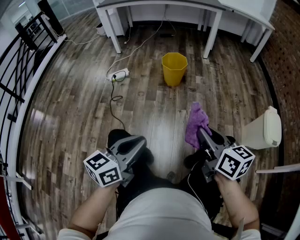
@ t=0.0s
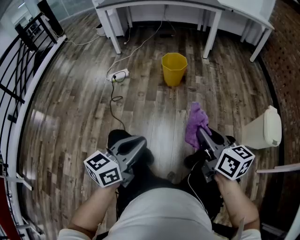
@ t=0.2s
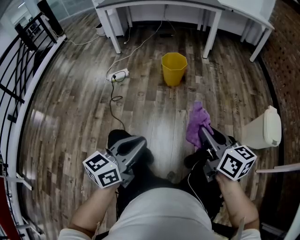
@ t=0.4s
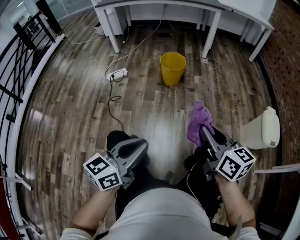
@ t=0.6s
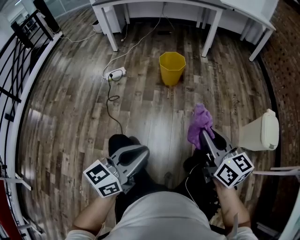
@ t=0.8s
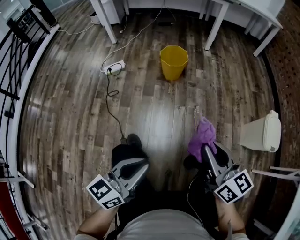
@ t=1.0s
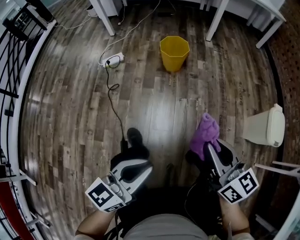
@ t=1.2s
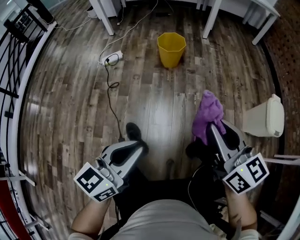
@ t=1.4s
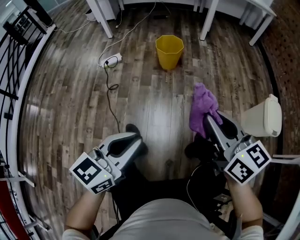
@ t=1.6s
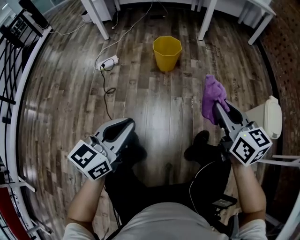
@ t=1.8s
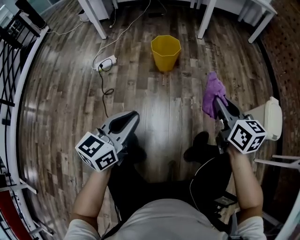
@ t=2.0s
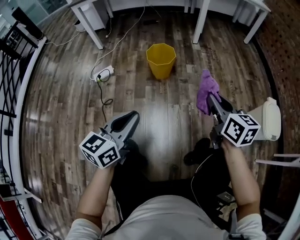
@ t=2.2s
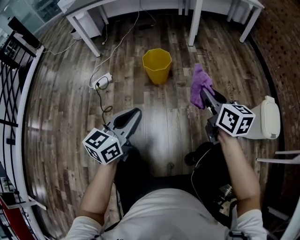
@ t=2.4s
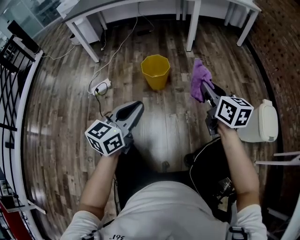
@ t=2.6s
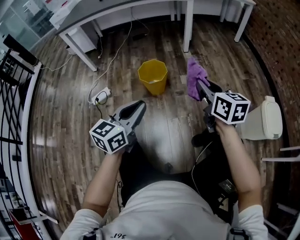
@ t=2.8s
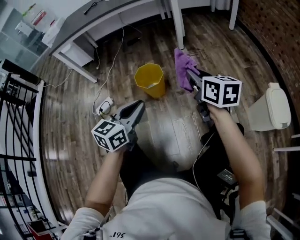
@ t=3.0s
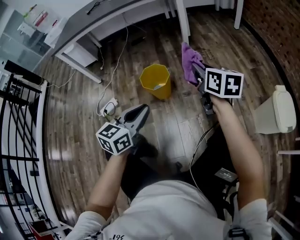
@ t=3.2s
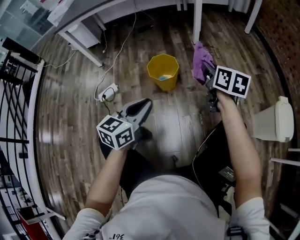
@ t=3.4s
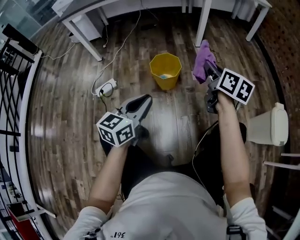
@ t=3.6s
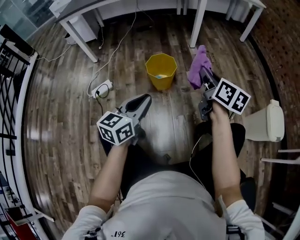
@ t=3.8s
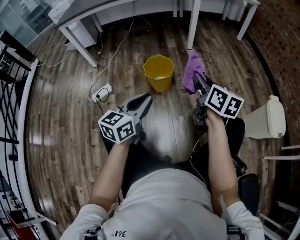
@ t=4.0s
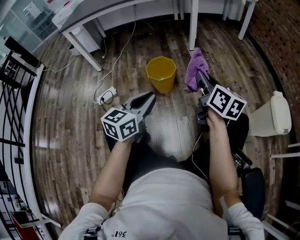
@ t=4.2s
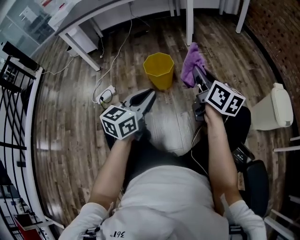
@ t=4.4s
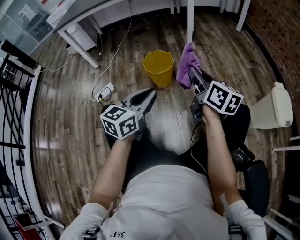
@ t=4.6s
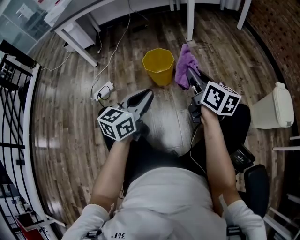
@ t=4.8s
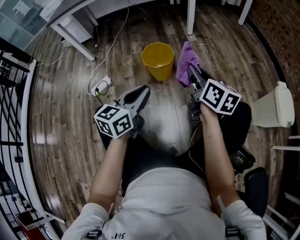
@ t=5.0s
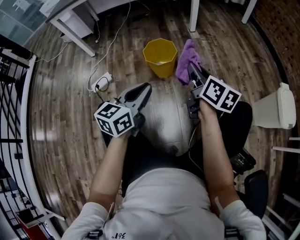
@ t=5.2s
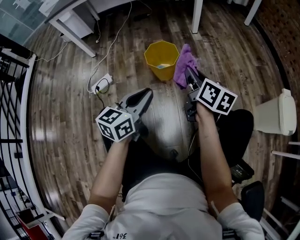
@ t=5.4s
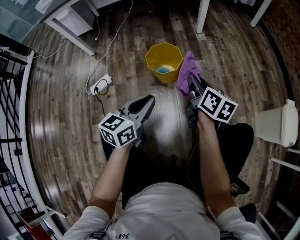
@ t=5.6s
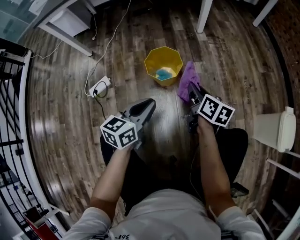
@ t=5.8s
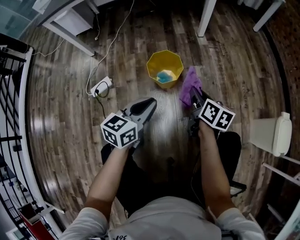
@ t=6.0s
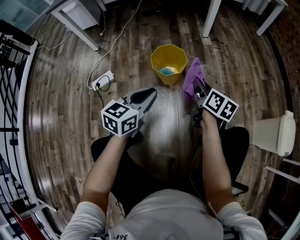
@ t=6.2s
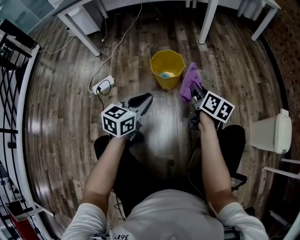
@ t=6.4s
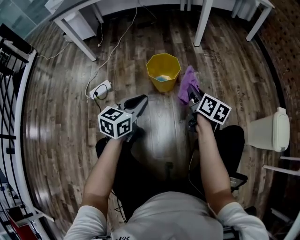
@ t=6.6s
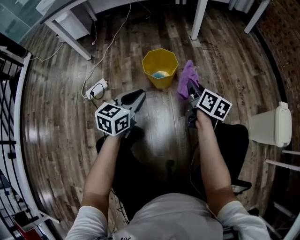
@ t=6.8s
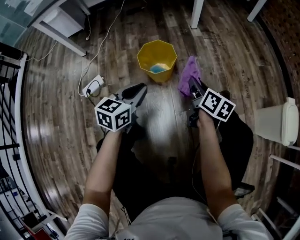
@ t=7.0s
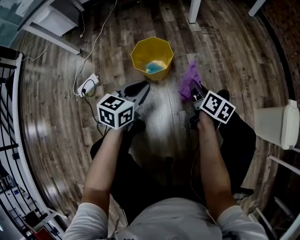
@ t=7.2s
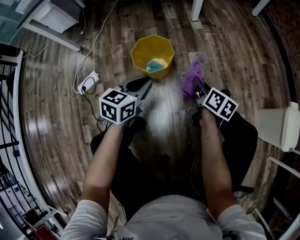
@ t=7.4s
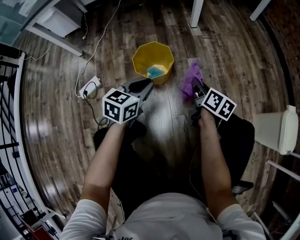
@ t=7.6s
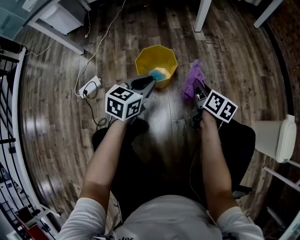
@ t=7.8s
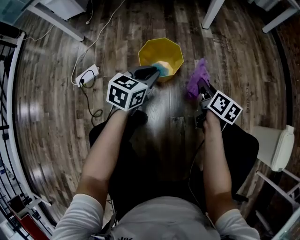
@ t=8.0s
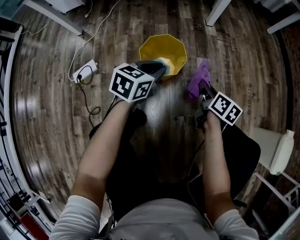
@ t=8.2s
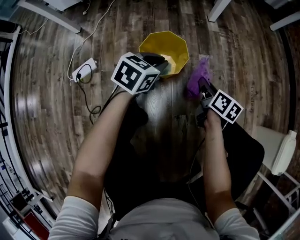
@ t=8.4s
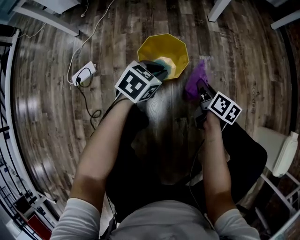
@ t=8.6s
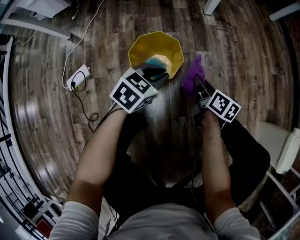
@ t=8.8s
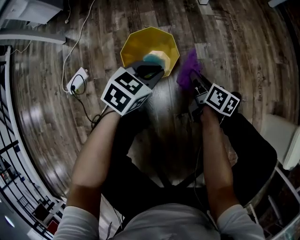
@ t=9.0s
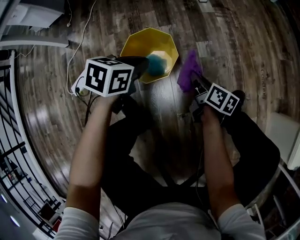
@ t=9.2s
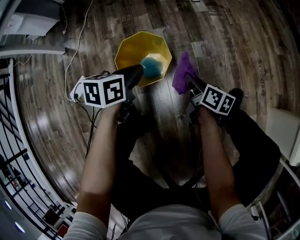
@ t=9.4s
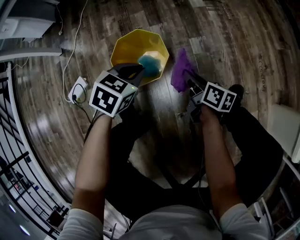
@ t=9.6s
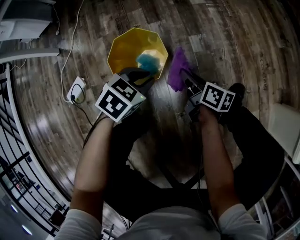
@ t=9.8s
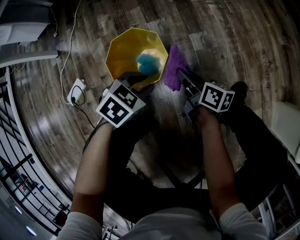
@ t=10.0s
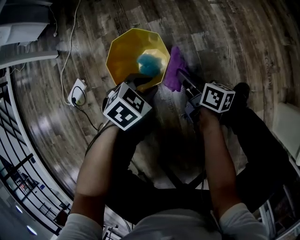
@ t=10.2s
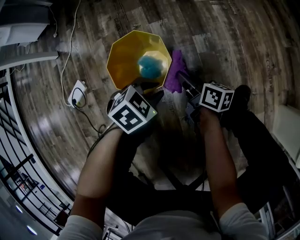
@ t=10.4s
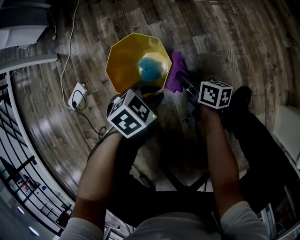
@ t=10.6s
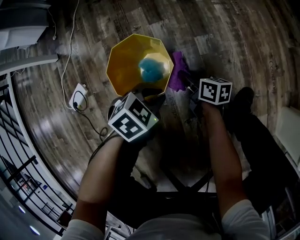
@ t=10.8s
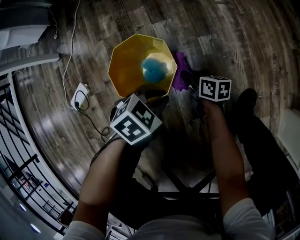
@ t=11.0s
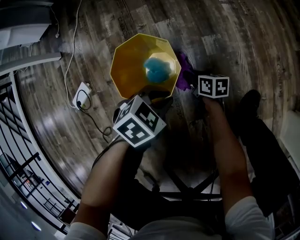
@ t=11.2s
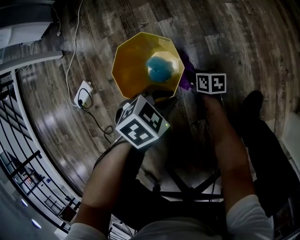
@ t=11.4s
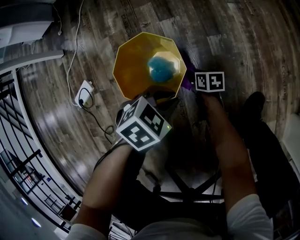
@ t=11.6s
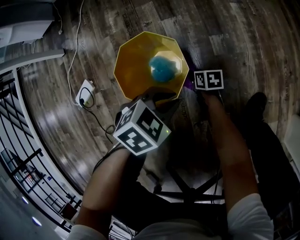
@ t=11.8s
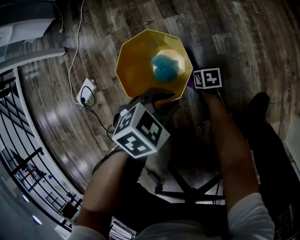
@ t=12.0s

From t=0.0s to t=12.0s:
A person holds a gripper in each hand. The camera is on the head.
From t=0.0s to t=1.6s: The right gripper shifts approximately 5 cm upward.
From t=1.6s to t=3.0s: Both grippers move forward, some 35 cm. The right gripper changes its angle by approximately 20 degrees.
From t=3.0s to t=4.4s: The right gripper is displaced backward and to the left by some 10 cm.
From t=4.4s to t=6.0s: The right gripper shifts some 20 cm downward, forward and to the left, and turns by approximately 30 degrees. The left gripper travels forward, to the left and downward by some 15 cm.
From t=6.0s to t=7.6s: The right gripper travels downward and to the right by about 10 cm. Meanwhile the left gripper moves downward and forward, roughly 15 cm.
From t=7.6s to t=9.0s: The right gripper goes some 15 cm downward and forward; the left gripper goes roughly 15 cm forward and downward, and rotates about 20 degrees.
From t=9.0s to t=10.4s: The right gripper moves some 5 cm; the left gripper travels downward by approximately 10 cm, and rotates approximately 20 degrees.
From t=10.4s to t=12.0s: The right gripper is displaced downward by approximately 20 cm, and tilts its fingers some 40 degrees downward.

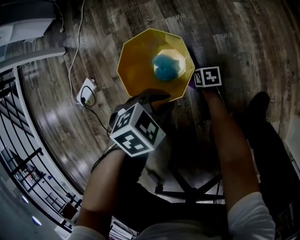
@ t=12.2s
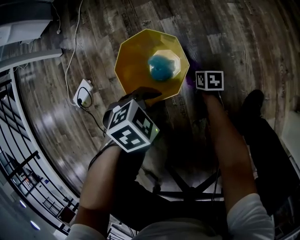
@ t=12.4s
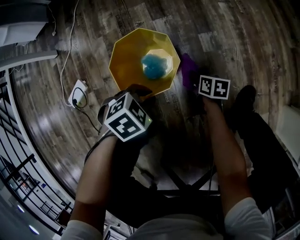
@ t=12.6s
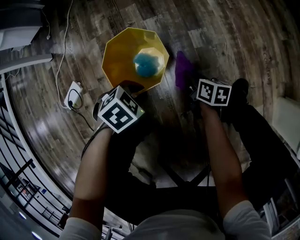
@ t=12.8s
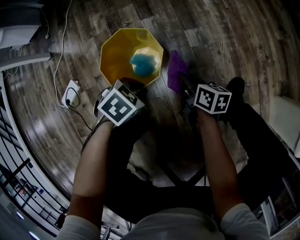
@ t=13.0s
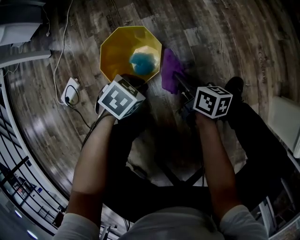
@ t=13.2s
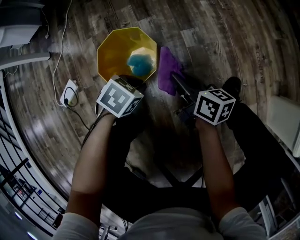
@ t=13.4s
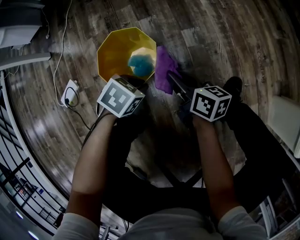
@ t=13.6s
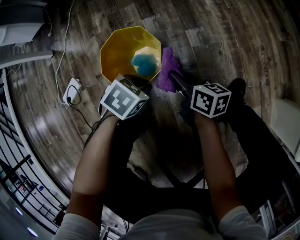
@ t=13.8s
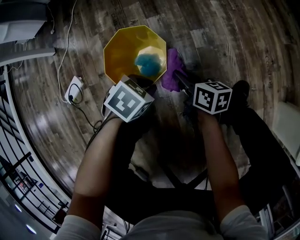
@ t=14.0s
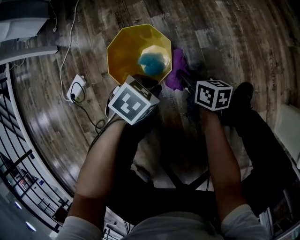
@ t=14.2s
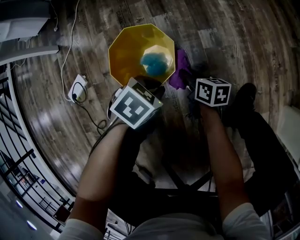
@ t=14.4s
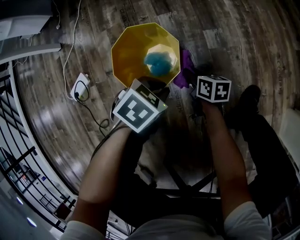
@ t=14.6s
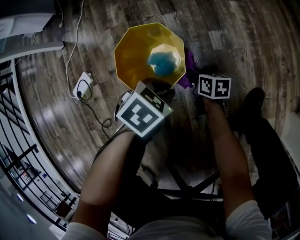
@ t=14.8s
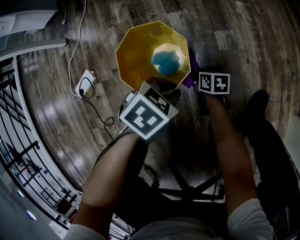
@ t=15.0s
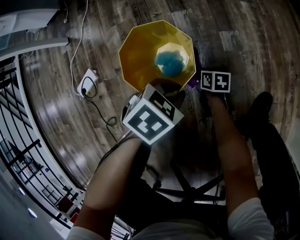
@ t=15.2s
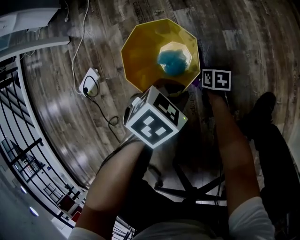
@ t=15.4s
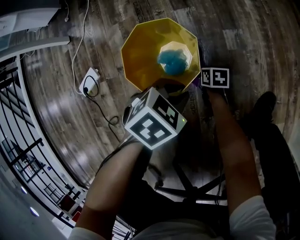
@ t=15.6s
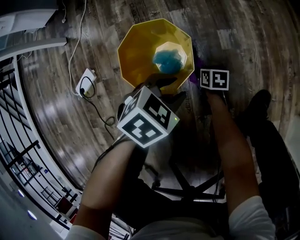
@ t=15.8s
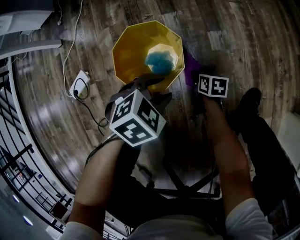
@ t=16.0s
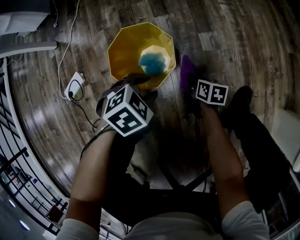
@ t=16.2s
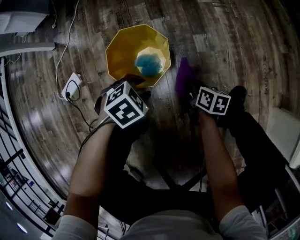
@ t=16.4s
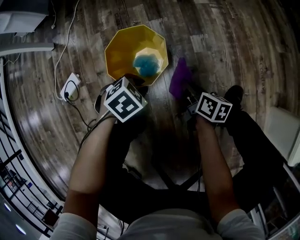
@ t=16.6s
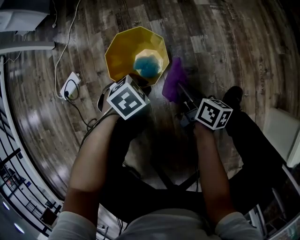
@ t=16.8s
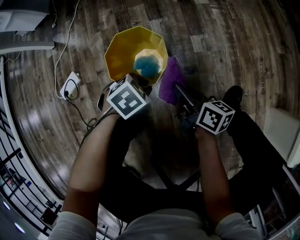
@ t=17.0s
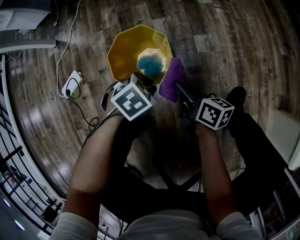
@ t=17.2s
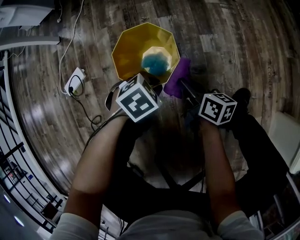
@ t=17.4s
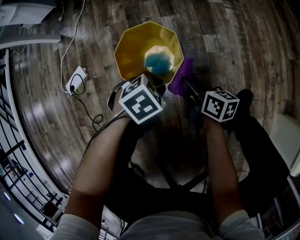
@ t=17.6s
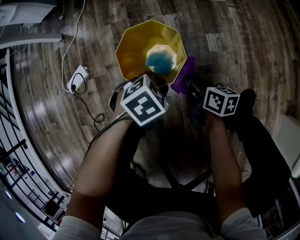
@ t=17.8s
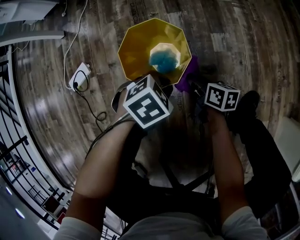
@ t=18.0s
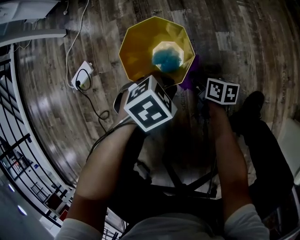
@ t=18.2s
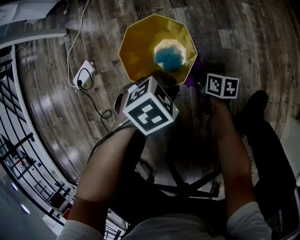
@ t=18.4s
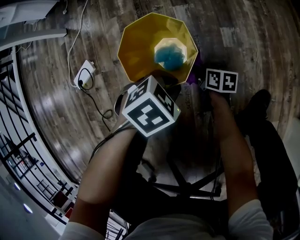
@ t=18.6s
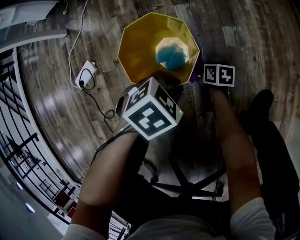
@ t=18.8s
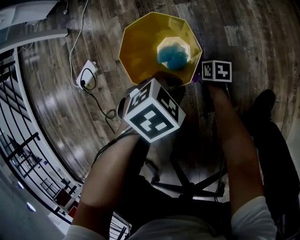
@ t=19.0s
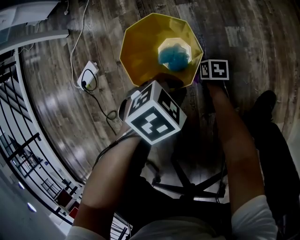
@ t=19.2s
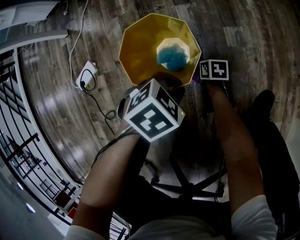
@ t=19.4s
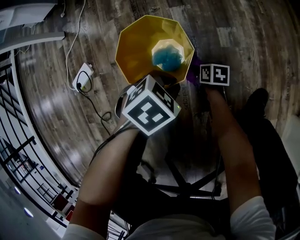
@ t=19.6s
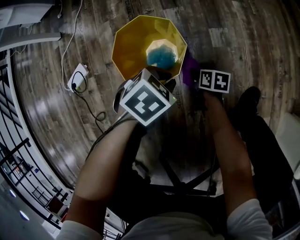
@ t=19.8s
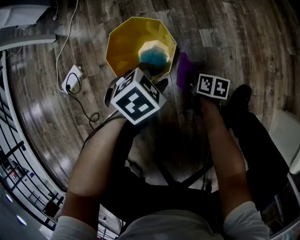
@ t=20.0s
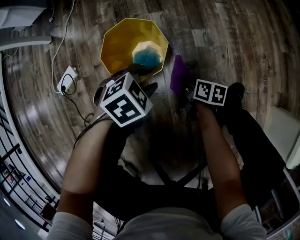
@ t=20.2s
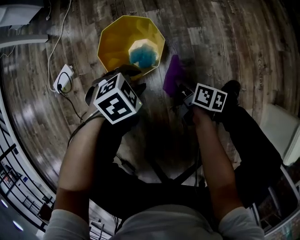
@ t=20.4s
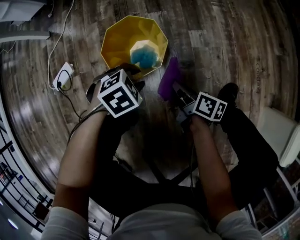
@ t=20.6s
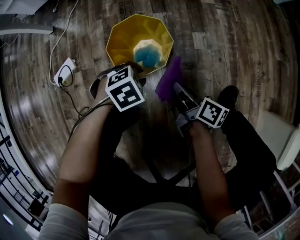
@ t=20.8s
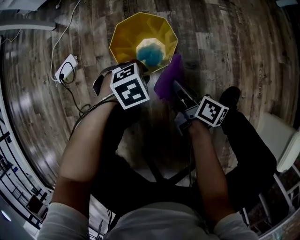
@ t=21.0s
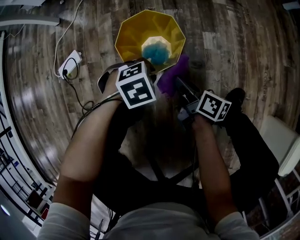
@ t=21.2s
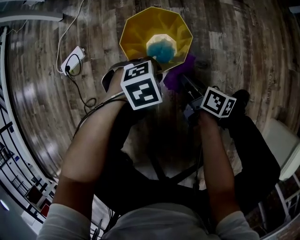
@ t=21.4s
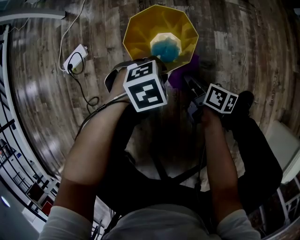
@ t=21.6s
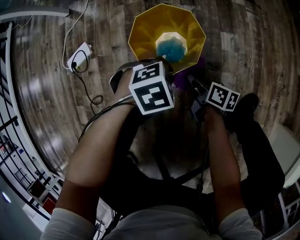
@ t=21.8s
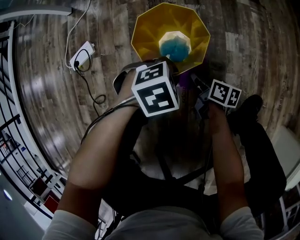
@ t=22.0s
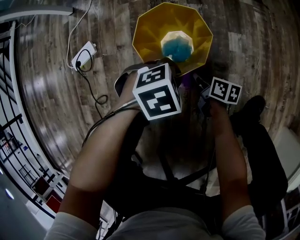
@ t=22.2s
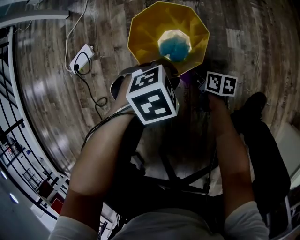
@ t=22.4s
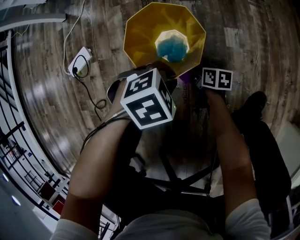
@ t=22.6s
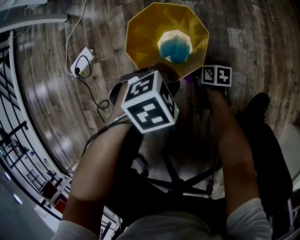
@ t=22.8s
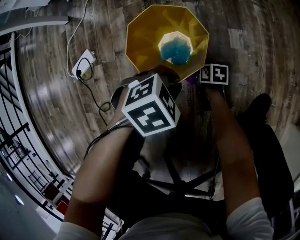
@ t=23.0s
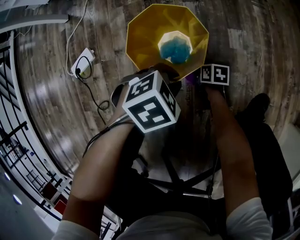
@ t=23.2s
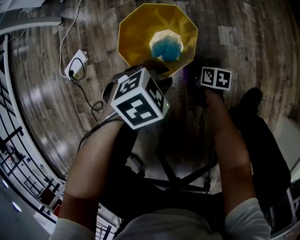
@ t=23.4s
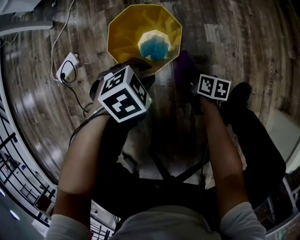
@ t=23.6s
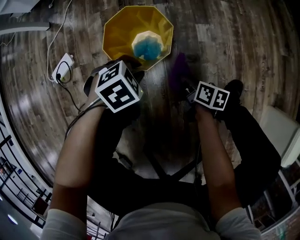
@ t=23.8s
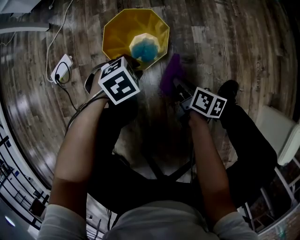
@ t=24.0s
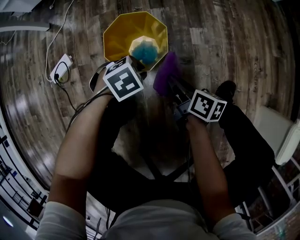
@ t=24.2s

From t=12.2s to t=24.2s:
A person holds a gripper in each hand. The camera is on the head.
From t=12.2s to t=13.8s: The right gripper moves upward, approximately 25 cm, and points its fingers approximately 40 degrees further upward.
From t=13.8s to t=15.2s: The right gripper goes some 20 cm downward, and swivels roughly 30 degrees.
From t=15.2s to t=16.6s: The right gripper is displaced upward by roughly 15 cm, and rotates some 20 degrees; the left gripper opens and closes again.
From t=16.6s to t=18.2s: The right gripper shifts about 10 cm downward.
From t=18.2s to t=19.8s: The right gripper goes about 5 cm downward.
From t=19.8s to t=21.2s: The left gripper shifts by roughly 5 cm. The right gripper goes roughly 15 cm upward, and turns by approximately 30 degrees.
From t=21.2s to t=22.6s: The right gripper goes about 20 cm downward, and turns by about 30 degrees.
From t=22.6s to t=24.2s: The right gripper heads upward, covering roughly 20 cm, and rotates some 20 degrees.
